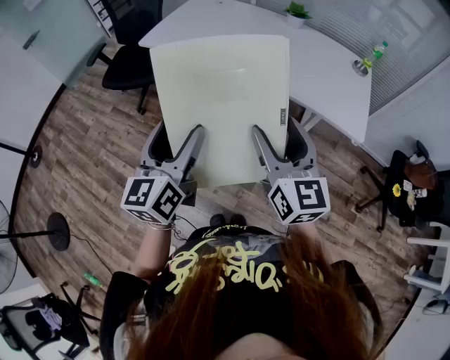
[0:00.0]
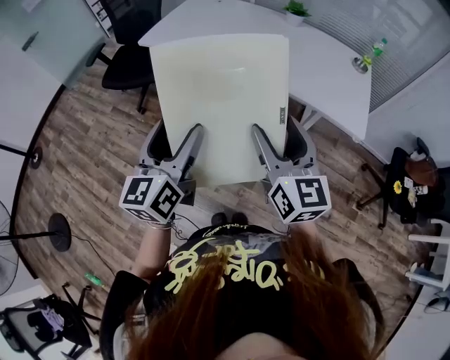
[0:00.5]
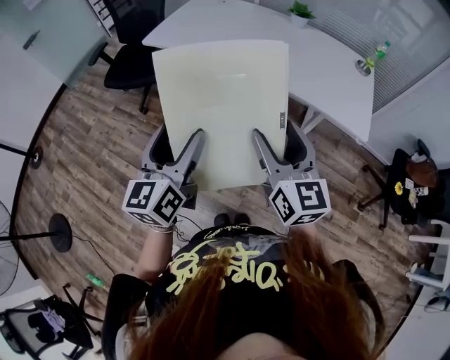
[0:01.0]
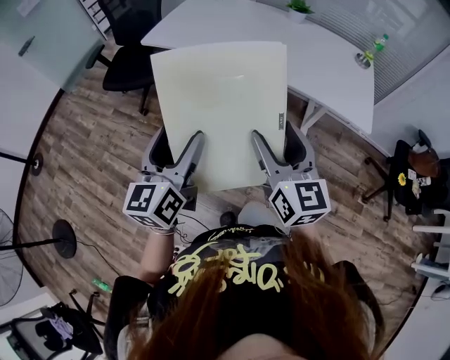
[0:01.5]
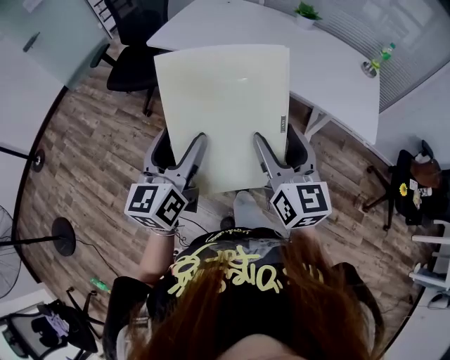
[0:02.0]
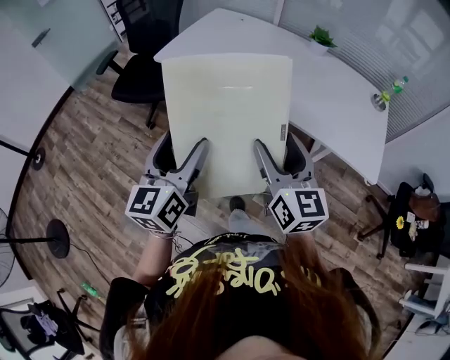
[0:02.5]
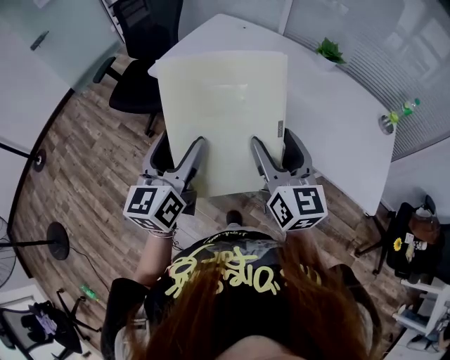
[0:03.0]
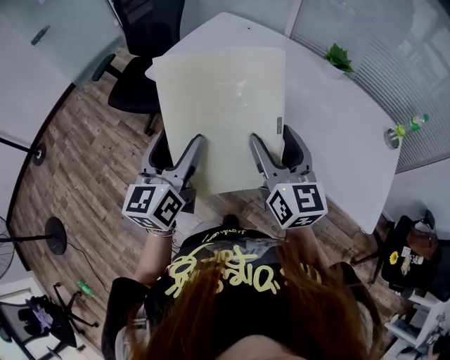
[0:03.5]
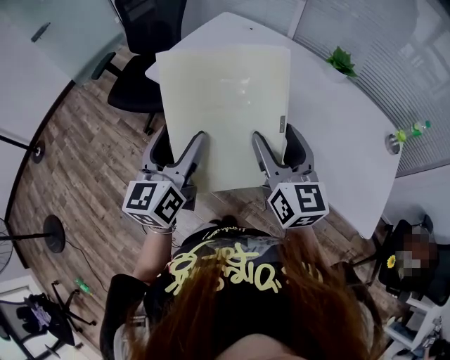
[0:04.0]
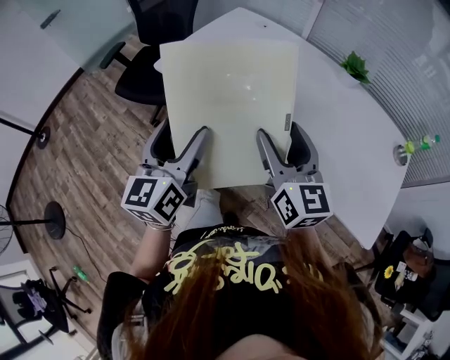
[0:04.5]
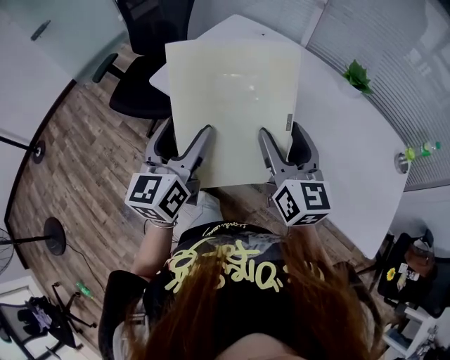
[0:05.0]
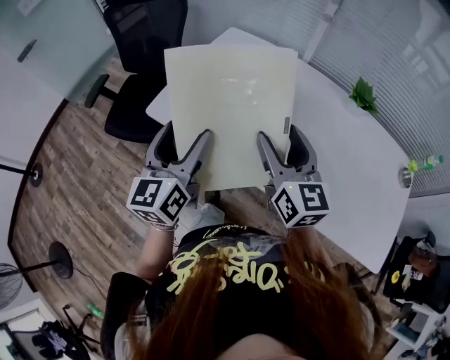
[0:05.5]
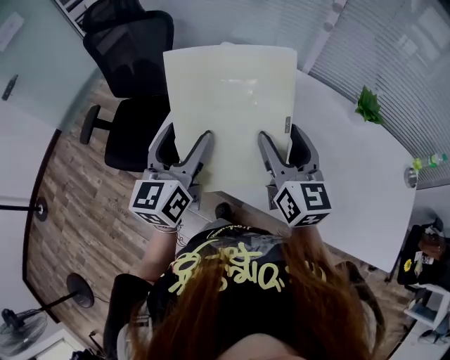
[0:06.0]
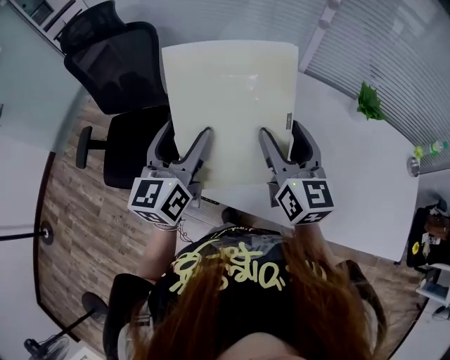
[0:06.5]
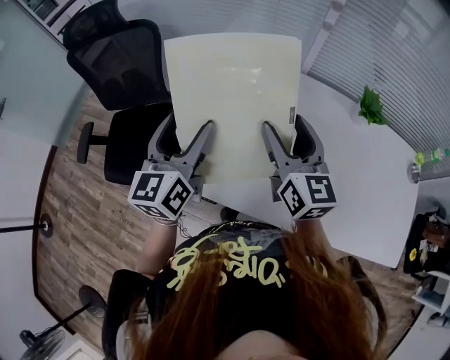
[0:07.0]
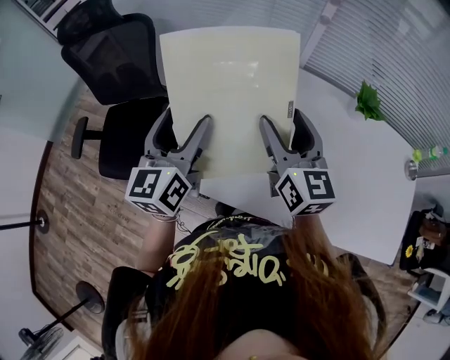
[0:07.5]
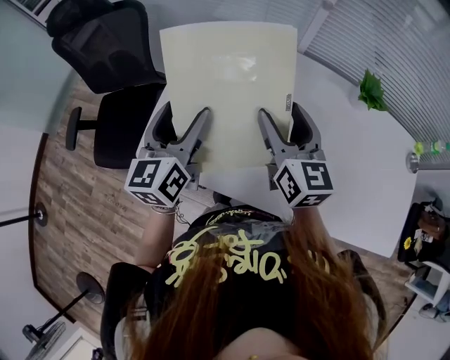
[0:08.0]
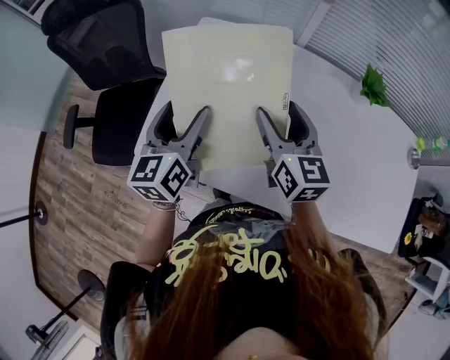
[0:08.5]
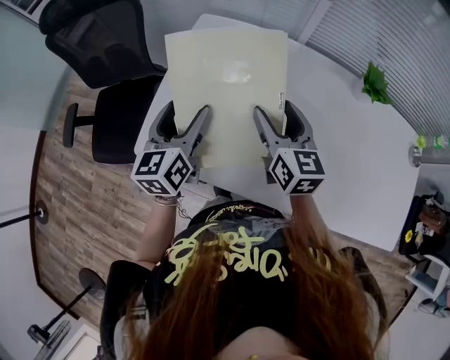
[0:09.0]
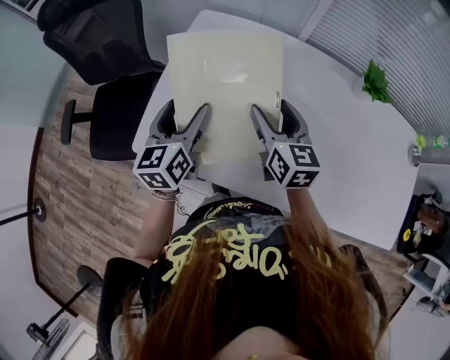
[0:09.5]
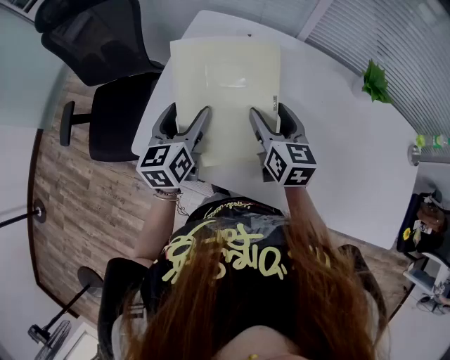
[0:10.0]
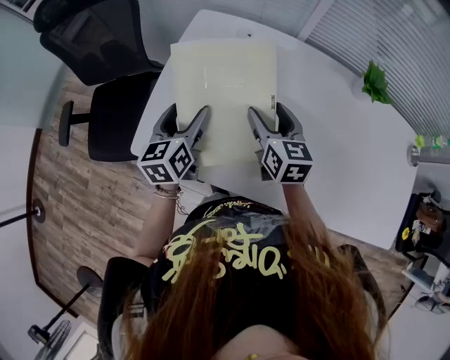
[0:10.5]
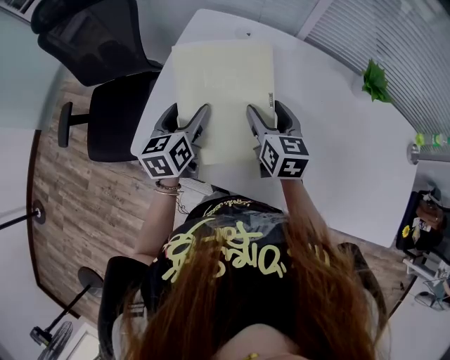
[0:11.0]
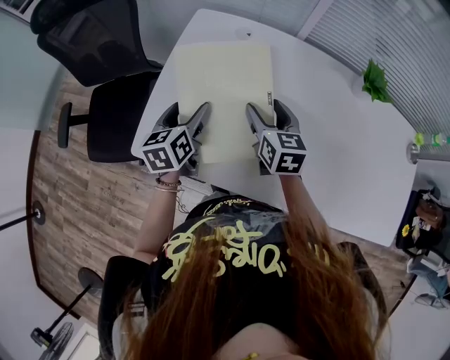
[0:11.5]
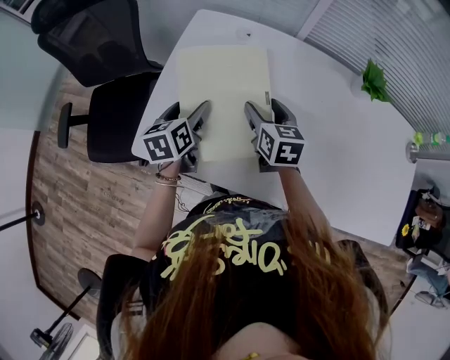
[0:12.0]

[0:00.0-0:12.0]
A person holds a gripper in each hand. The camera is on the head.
0:00.0 to 0:02.0: Both grippers move to the left, roughly 5 cm.
0:02.0 to 0:04.0: Both grippers move forward, roughly 30 cm.
0:04.0 to 0:06.0: Both grippers move forward, some 30 cm.
0:06.0 to 0:08.0: The grippers both shift forward by some 10 cm.
0:08.0 to 0:10.0: The grippers both shift downward by about 10 cm.
0:10.0 to 0:12.0: The left gripper moves downward, about 5 cm. Meanwhile the right gripper changes place by roughly 5 cm.

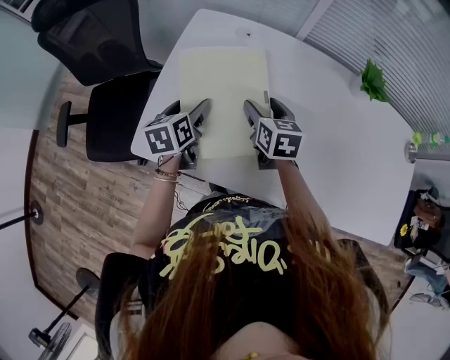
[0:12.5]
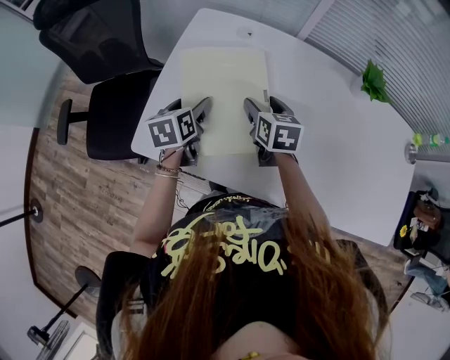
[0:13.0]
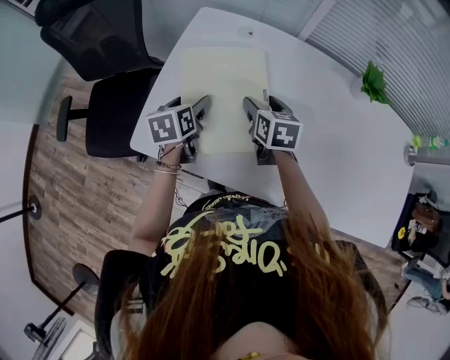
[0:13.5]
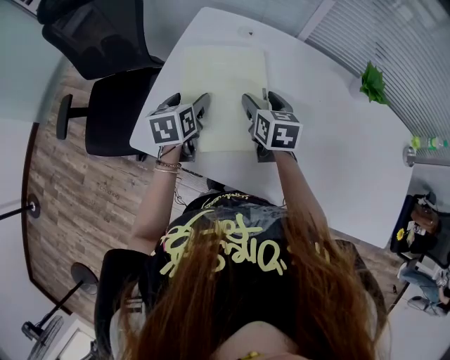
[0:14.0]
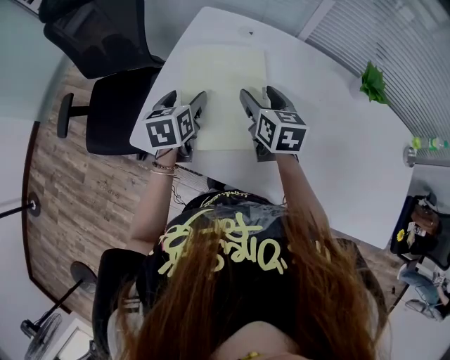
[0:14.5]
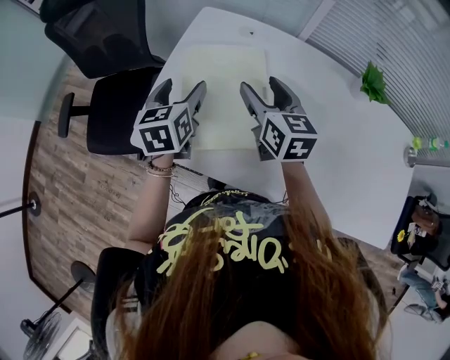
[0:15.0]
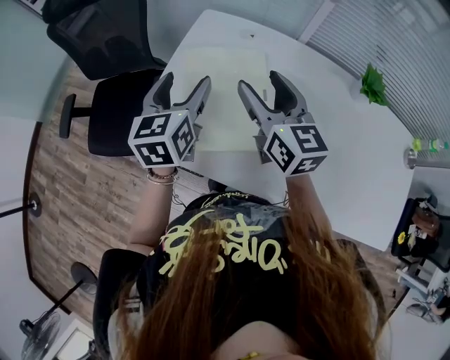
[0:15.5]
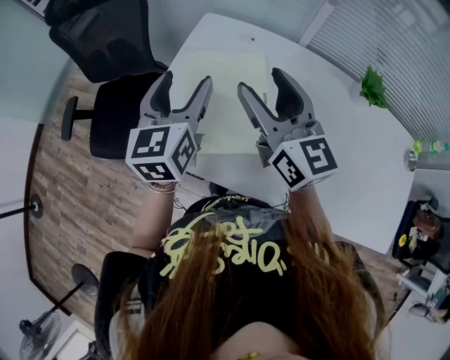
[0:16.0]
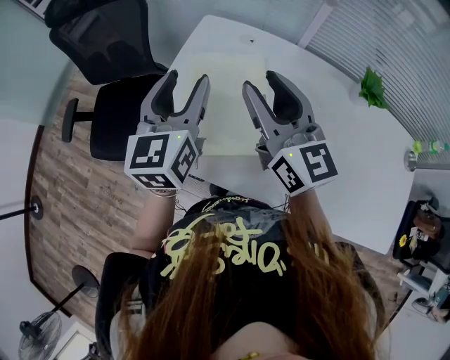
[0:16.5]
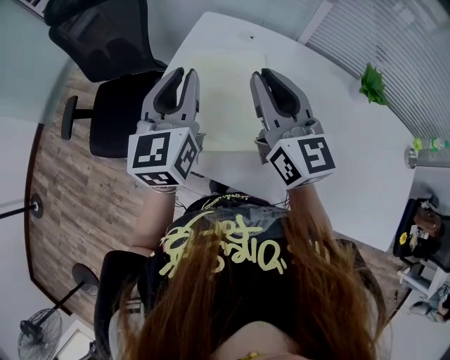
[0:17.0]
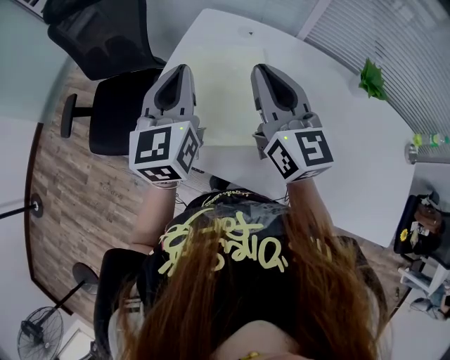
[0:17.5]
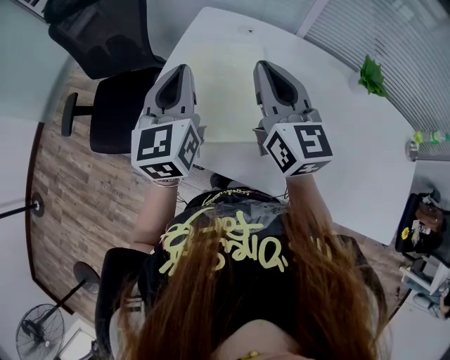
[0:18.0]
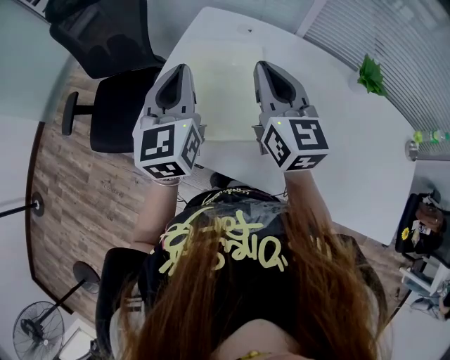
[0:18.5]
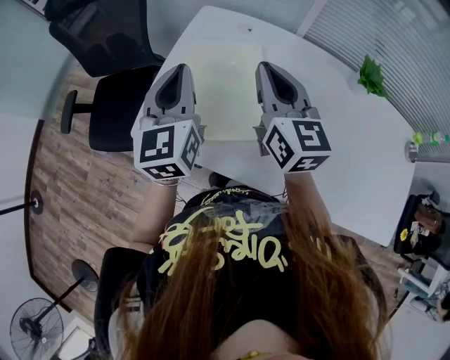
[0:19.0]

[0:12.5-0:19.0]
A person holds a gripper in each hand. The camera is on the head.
0:12.5 to 0:14.5: There are only small adjustments of the grippers.
0:14.5 to 0:17.0: The two grippers go approximately 20 cm upward. The left gripper tilts its fingers roughly 30 degrees upward, and closes. Meanwhile the right gripper tips its fingers upward by approximately 30 degrees, and closes up.
0:17.0 to 0:19.0: There are only small adjustments of the grippers.

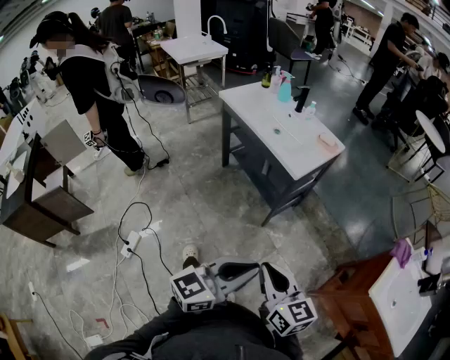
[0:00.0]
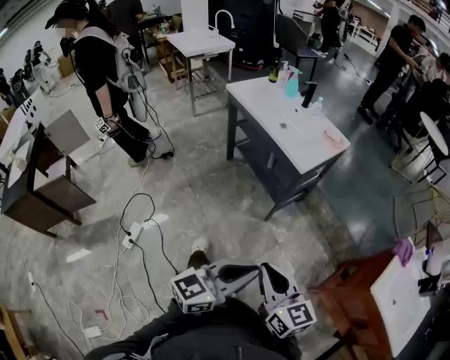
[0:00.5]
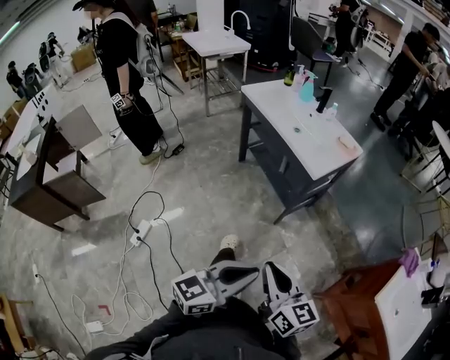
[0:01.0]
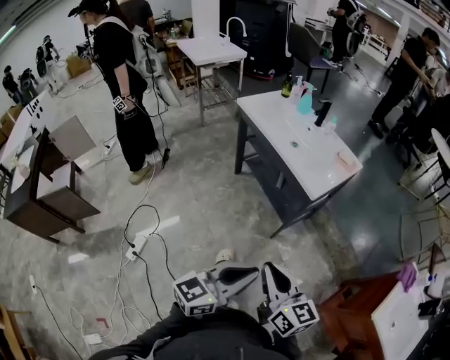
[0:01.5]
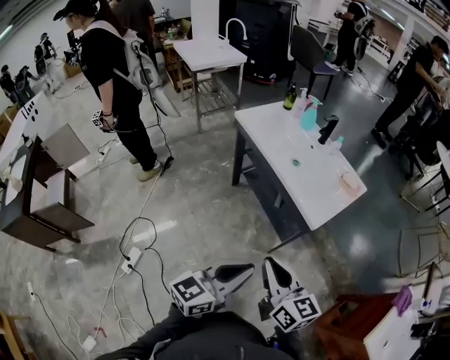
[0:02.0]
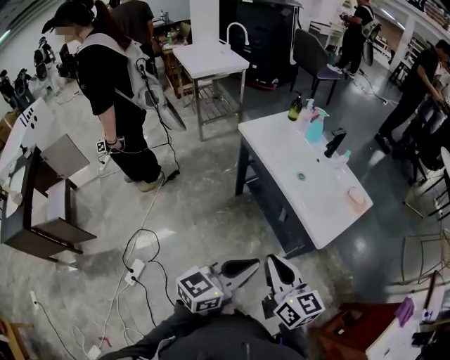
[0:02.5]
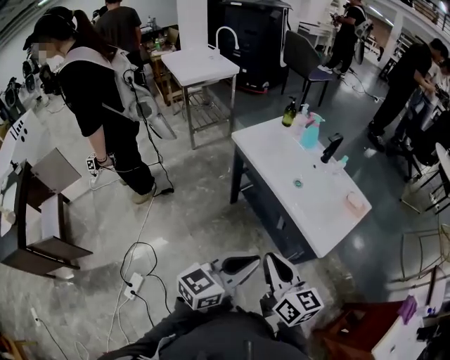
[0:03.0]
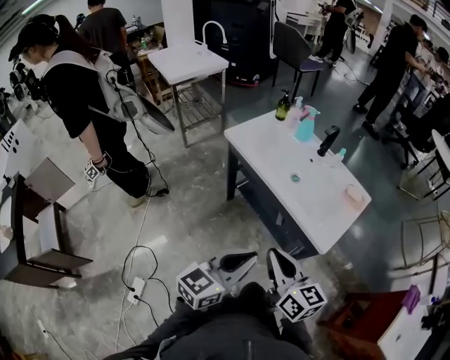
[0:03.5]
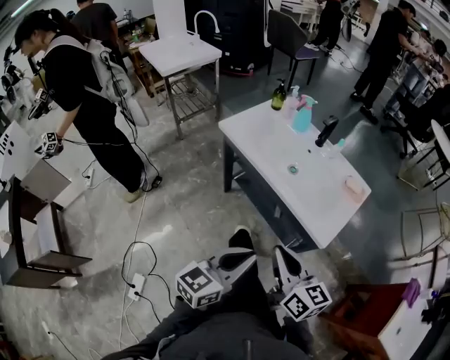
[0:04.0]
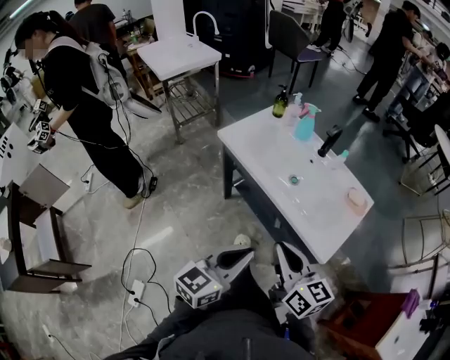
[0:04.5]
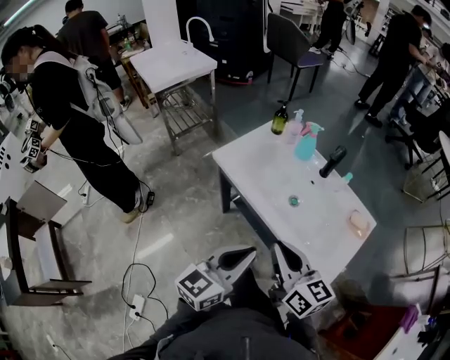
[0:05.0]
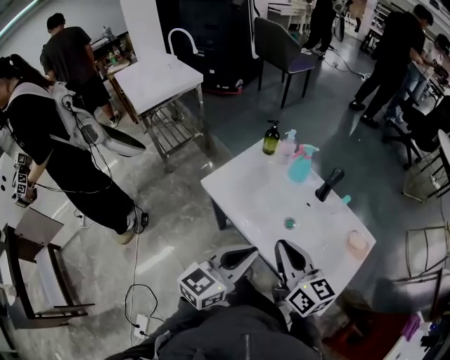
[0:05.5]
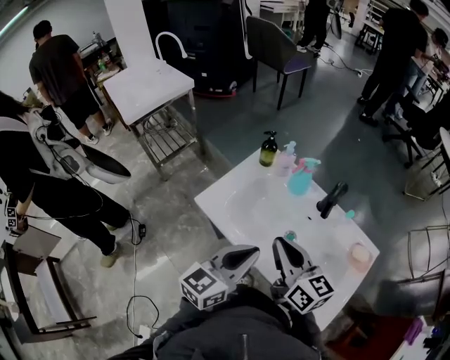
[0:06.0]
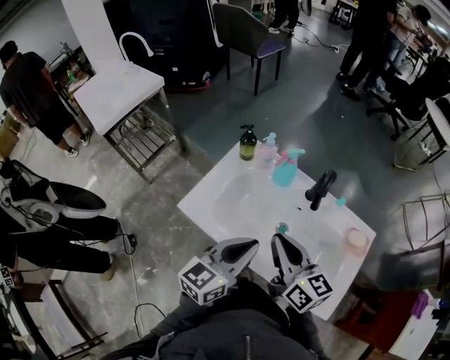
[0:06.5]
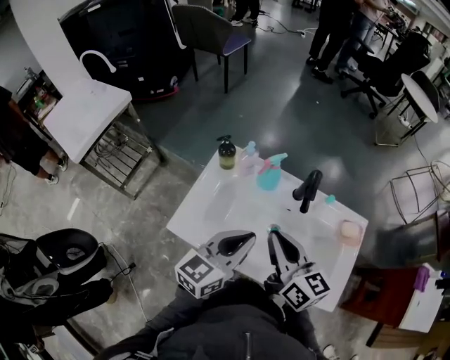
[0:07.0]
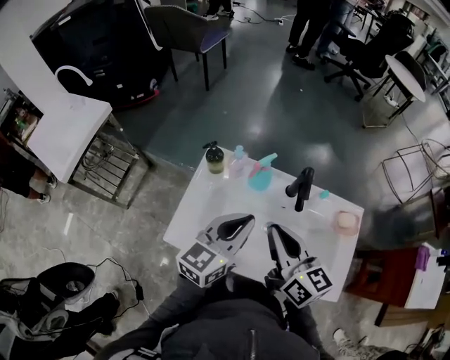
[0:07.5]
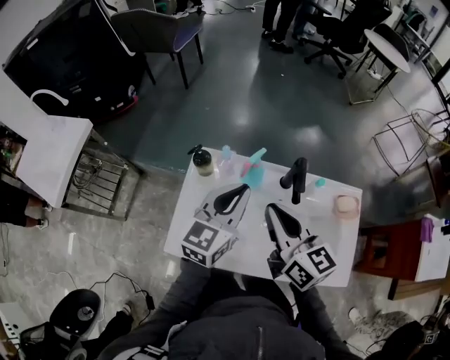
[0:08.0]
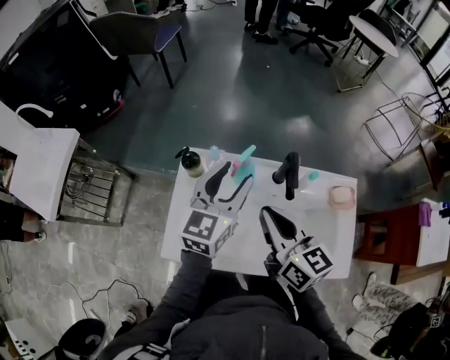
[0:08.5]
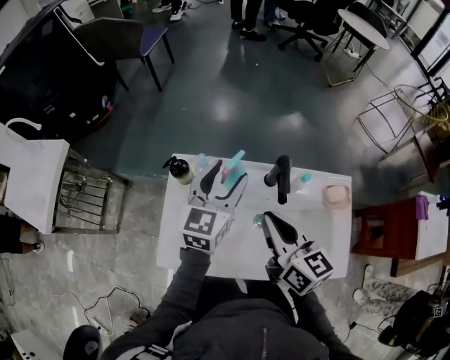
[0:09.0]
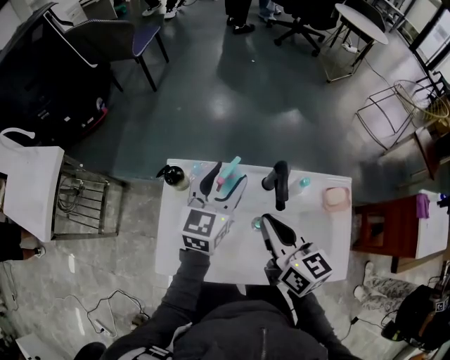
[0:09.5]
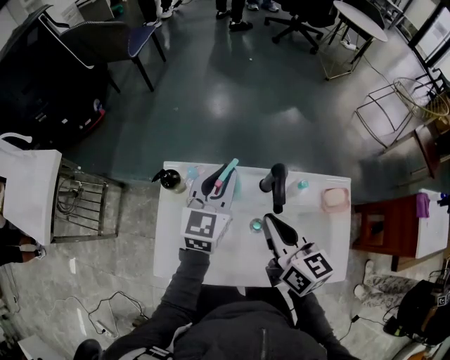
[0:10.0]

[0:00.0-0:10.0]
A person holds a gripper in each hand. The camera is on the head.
0:00.0 to 0:02.0: Both grippers travel together forward and to the left, approximately 20 cm.
0:02.0 to 0:04.0: The left gripper travels forward and to the left by roughly 20 cm. The right gripper travels forward by about 15 cm.
0:04.0 to 0:06.0: Both grippers move forward, about 35 cm.
0:06.0 to 0:08.0: The left gripper heads forward, covering approximately 25 cm, and turns by roughly 20 degrees. Meanwhile the right gripper goes roughly 15 cm forward, and changes its angle by roughly 30 degrees.
0:08.0 to 0:10.0: The left gripper goes approximately 10 cm forward, and opens, then closes once more; the right gripper travels to the right by approximately 5 cm.
